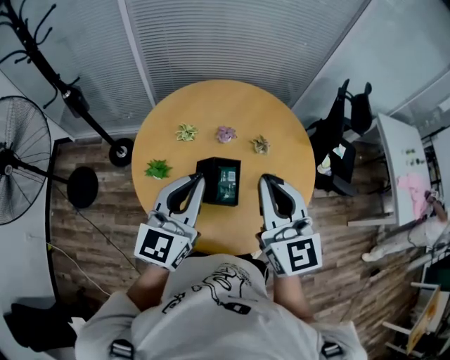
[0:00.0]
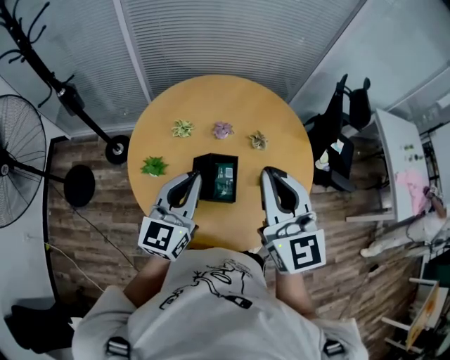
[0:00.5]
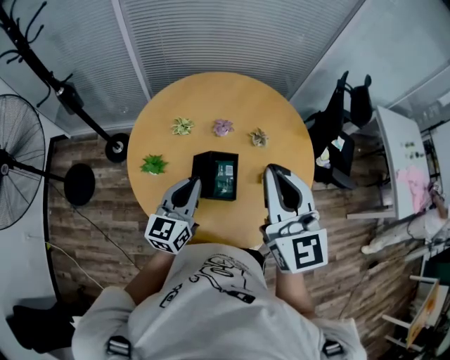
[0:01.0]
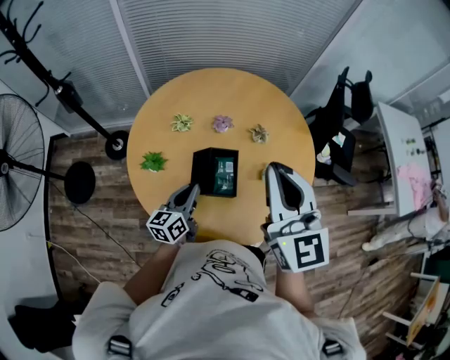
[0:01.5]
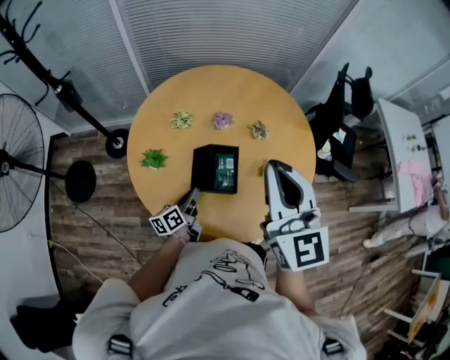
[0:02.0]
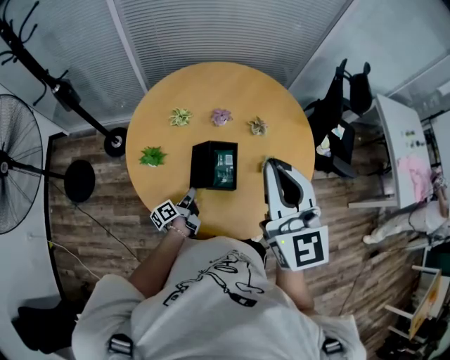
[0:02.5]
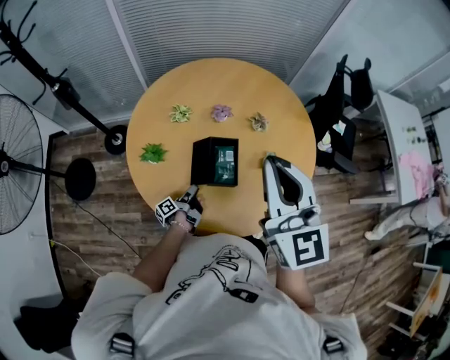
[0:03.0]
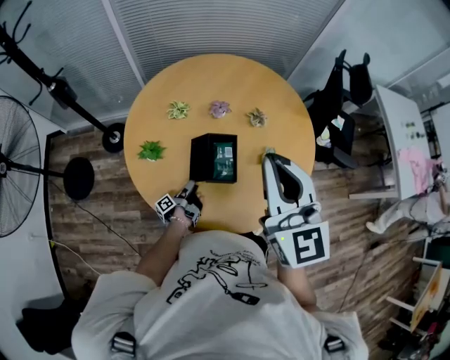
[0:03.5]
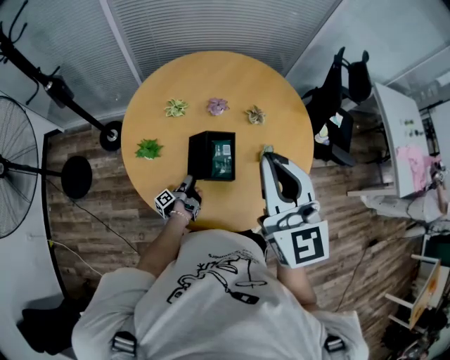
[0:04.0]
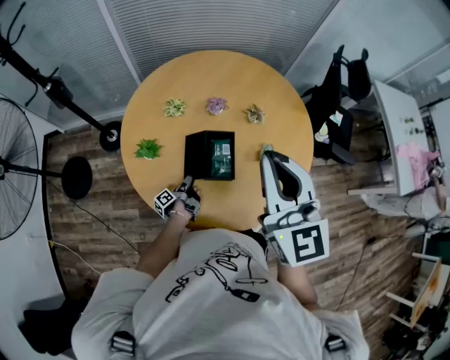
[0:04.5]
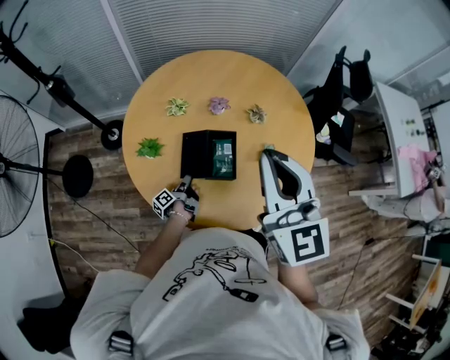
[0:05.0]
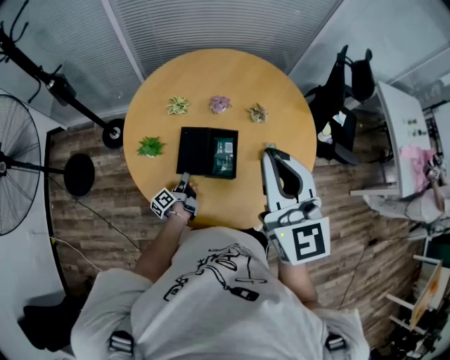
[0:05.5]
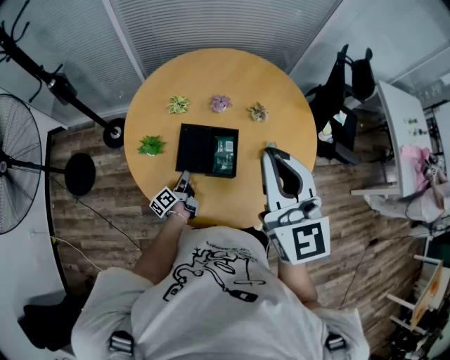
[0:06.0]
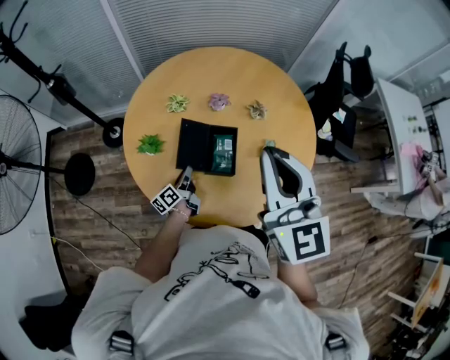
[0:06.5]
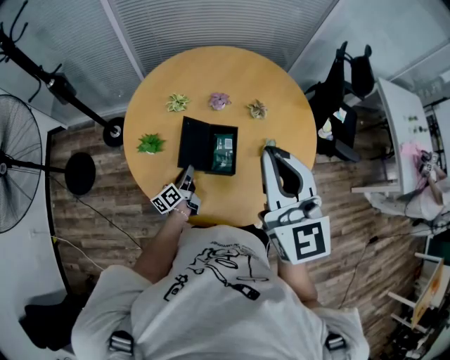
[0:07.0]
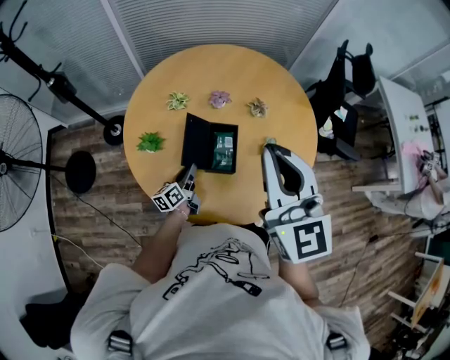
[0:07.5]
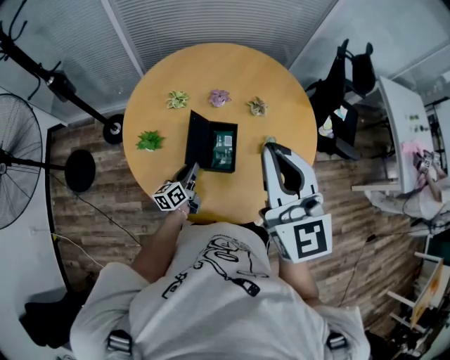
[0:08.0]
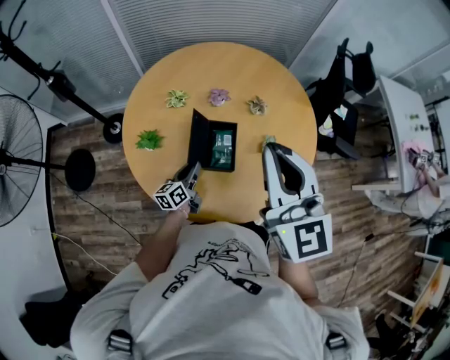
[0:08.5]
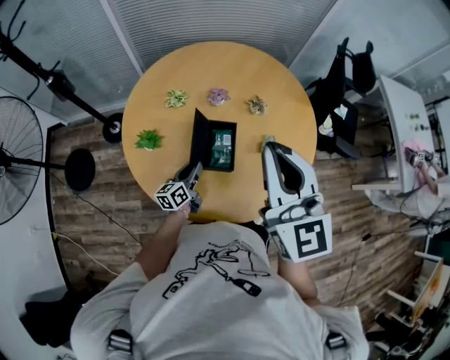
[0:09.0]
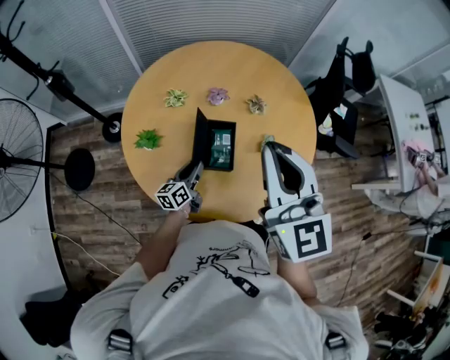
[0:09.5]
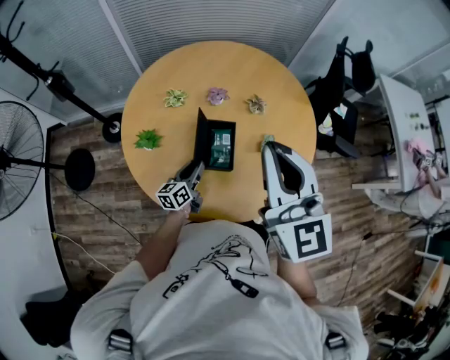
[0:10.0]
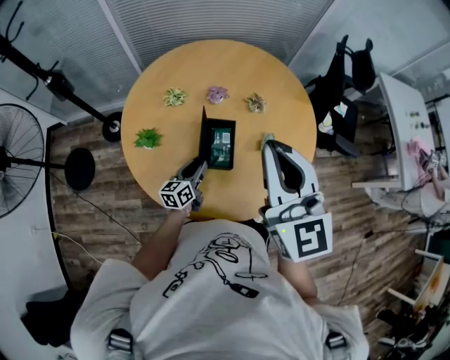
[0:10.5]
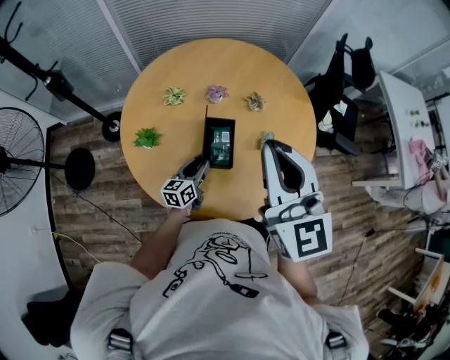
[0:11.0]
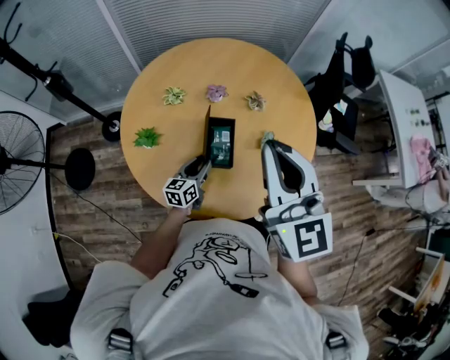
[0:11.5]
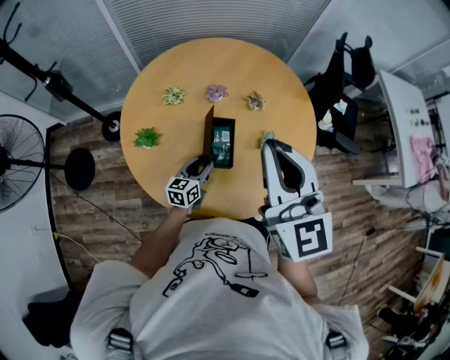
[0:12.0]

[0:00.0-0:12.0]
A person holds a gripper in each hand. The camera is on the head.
0:00.0 to 0:02.0: The left gripper is displaced downward by roughly 35 cm, and twists about 50 degrees counterclockwise, seen from behind.
0:02.0 to 0:04.0: The left gripper shifts about 15 cm downward, twists roughly 50 degrees counterclockwise, seen from behind, and opens its fingers.
0:04.0 to 0:06.0: The left gripper goes roughly 5 cm upward, swivels roughly 30 degrees, and closes up.
0:06.0 to 0:08.0: The left gripper travels upward by roughly 5 cm, and turns by some 30 degrees.
0:08.0 to 0:10.0: The grippers stay close to where they were, moving slightly.
0:10.0 to 0:12.0: The grippers move only a little.

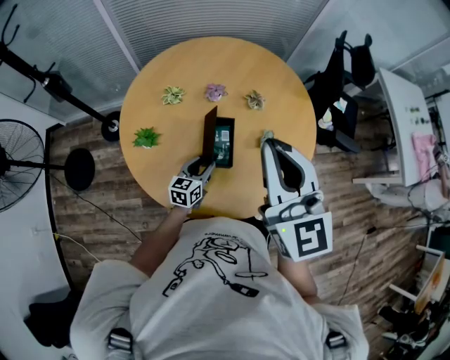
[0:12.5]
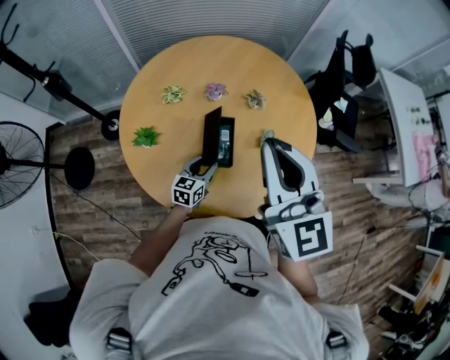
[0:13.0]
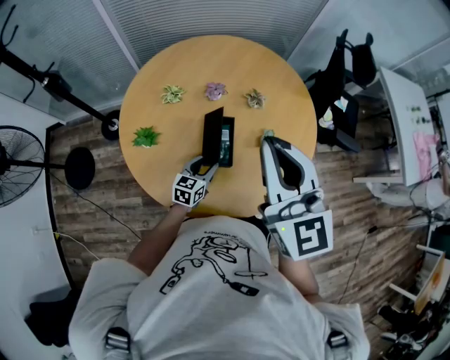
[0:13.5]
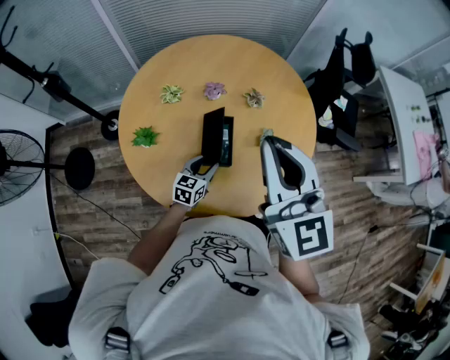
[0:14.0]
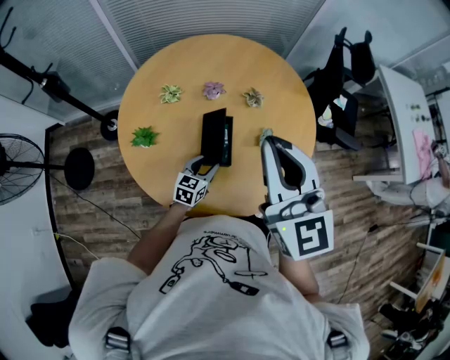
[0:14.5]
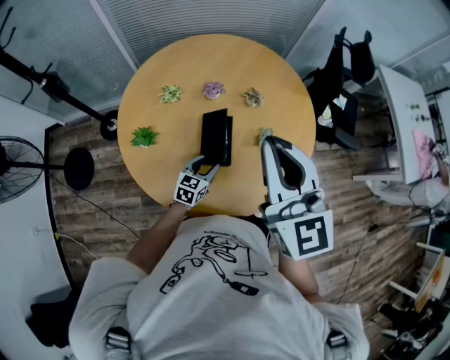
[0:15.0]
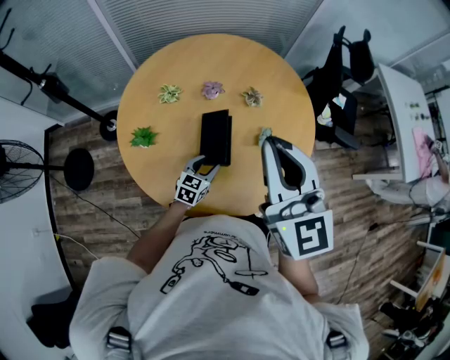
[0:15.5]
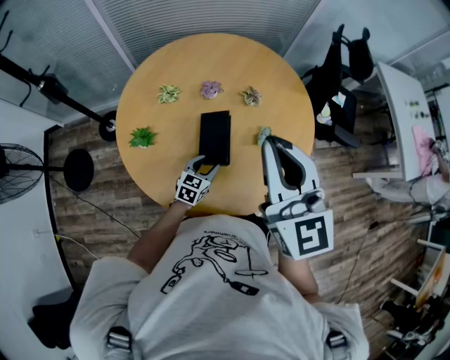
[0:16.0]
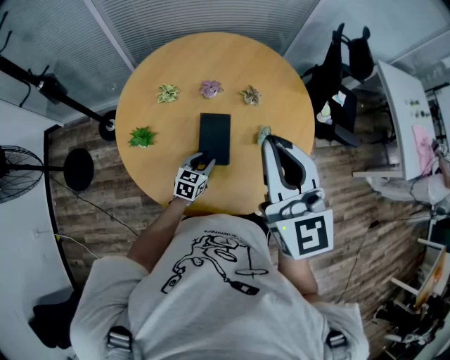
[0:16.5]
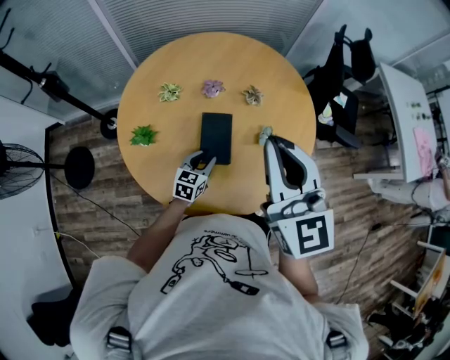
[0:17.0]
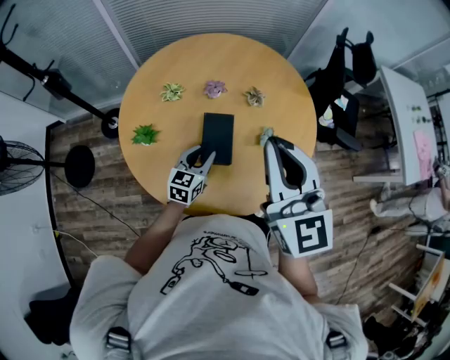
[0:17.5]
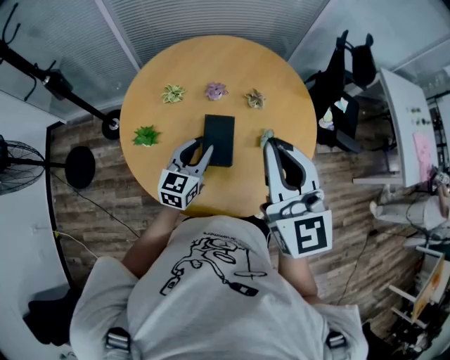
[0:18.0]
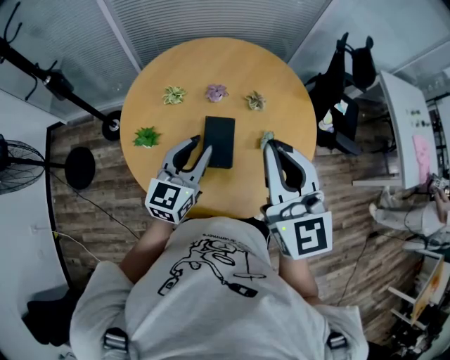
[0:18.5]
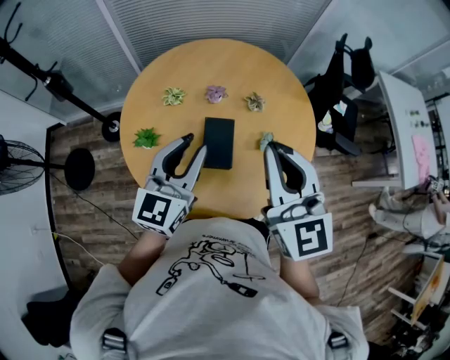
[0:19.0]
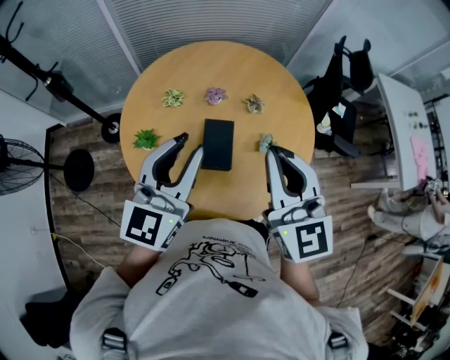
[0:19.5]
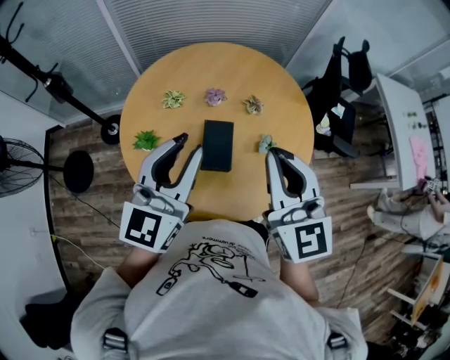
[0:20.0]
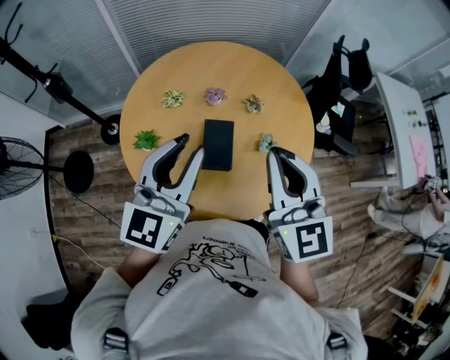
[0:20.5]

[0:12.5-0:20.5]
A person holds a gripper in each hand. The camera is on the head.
0:12.5 to 0:16.5: The grippers make only small movements.
0:16.5 to 0:18.5: The left gripper heads upward, covering roughly 25 cm, and turns by approximately 30 degrees.
0:18.5 to 0:20.5: The left gripper is displaced upward by about 15 cm.

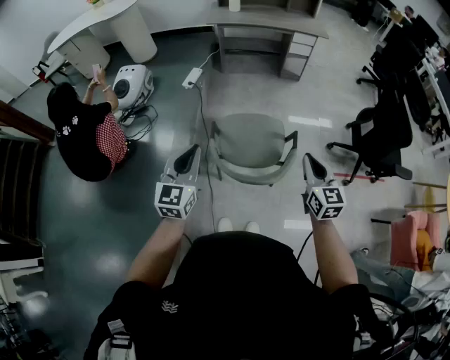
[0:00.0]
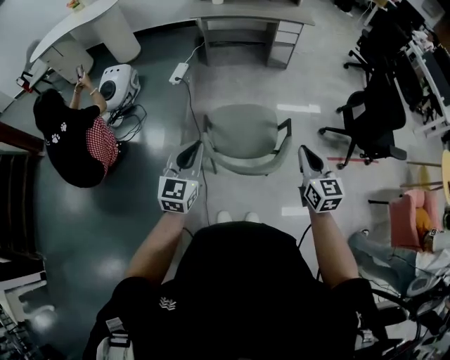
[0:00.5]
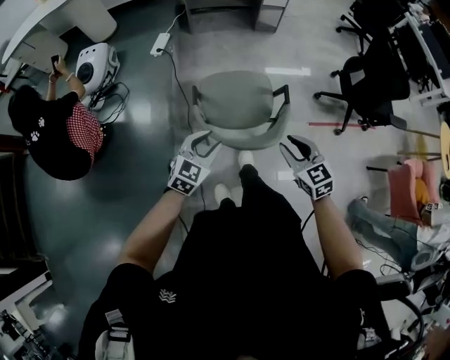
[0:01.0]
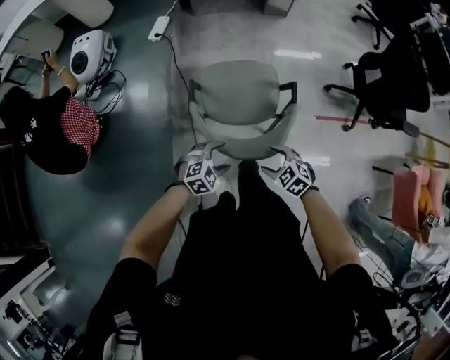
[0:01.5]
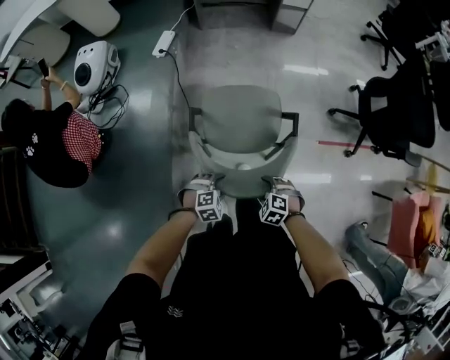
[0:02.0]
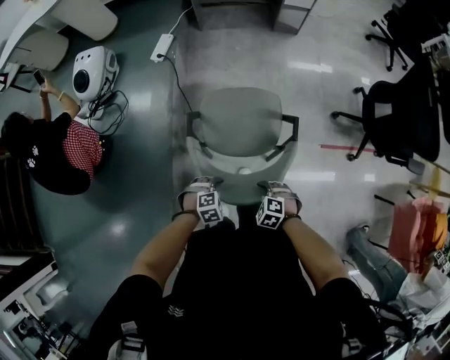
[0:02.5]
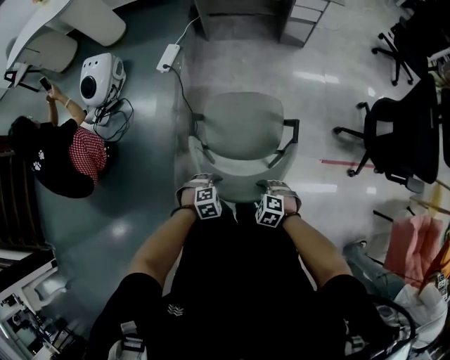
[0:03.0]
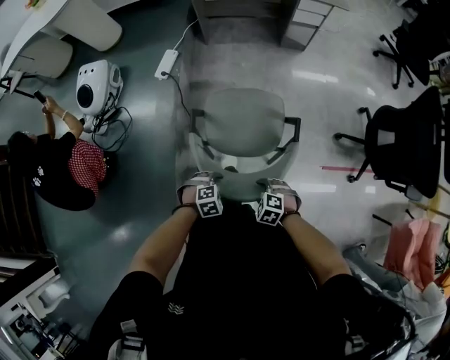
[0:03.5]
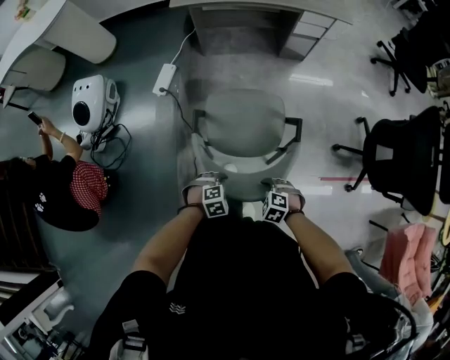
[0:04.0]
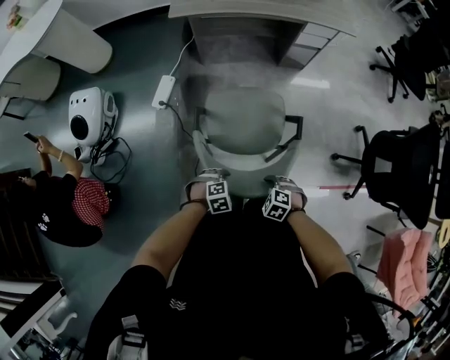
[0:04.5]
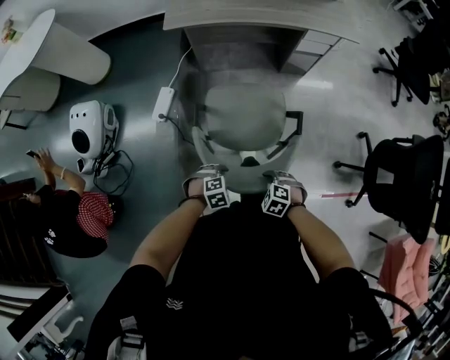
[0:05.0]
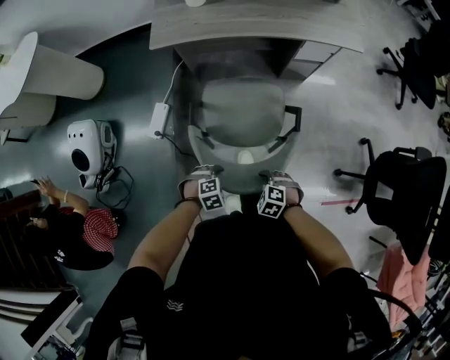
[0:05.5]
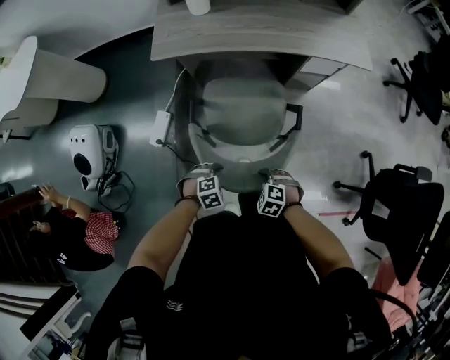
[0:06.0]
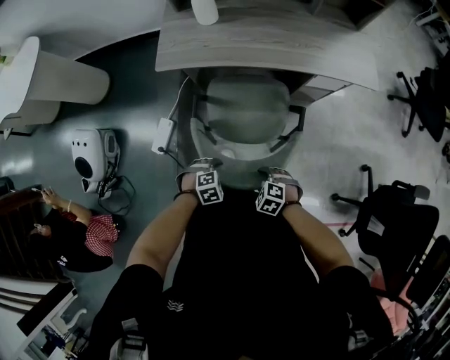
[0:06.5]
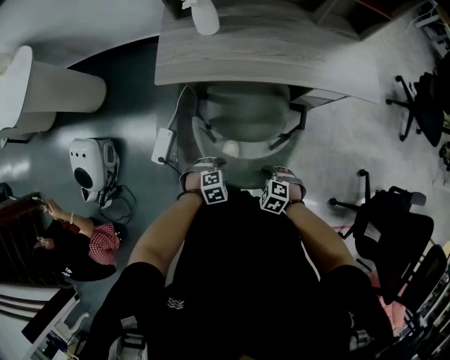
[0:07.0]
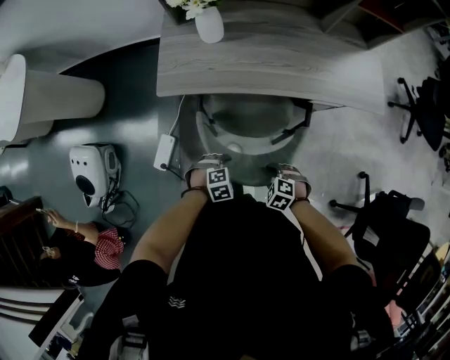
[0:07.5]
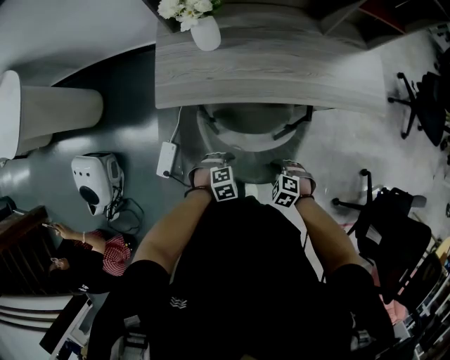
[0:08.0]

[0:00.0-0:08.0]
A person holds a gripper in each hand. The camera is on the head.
0:00.0 to 0:02.0: Both grippers move downward, some 40 cm. The left gripper tips its fingers downward by some 60 degrees, and opens, while the right gripper tilts its fingers roughly 60 degrees downward, and opens its fingers.
0:02.0 to 0:04.0: The left gripper shifts by approximately 35 cm, while the right gripper ends up roughly 35 cm from where it was.
0:04.0 to 0:06.0: Both grippers are carried some 40 cm.
0:06.0 to 0:08.0: The right gripper shifts by about 30 cm. The left gripper shifts by approximately 30 cm.
